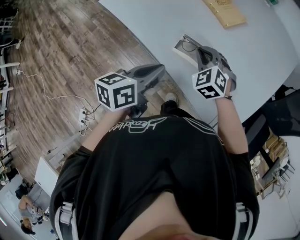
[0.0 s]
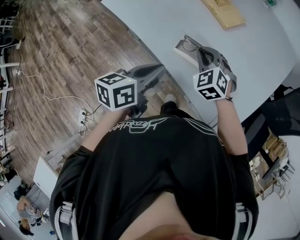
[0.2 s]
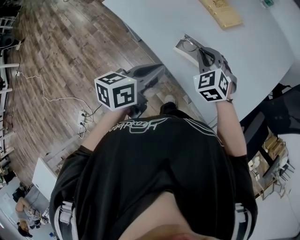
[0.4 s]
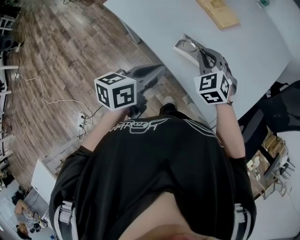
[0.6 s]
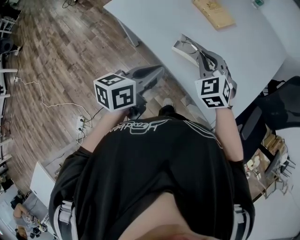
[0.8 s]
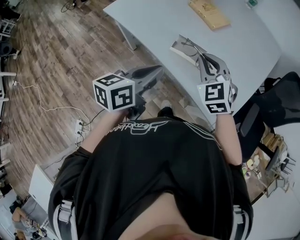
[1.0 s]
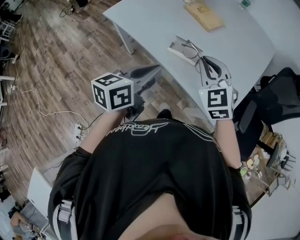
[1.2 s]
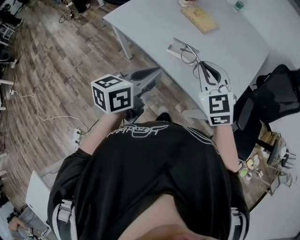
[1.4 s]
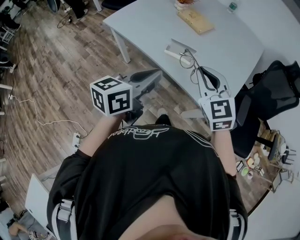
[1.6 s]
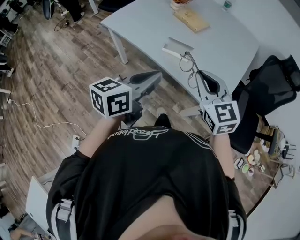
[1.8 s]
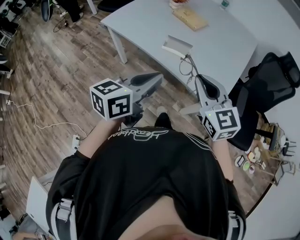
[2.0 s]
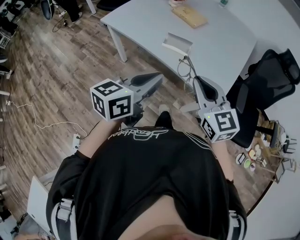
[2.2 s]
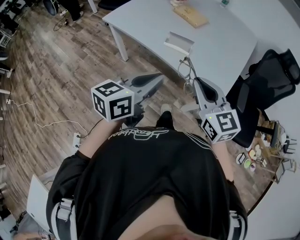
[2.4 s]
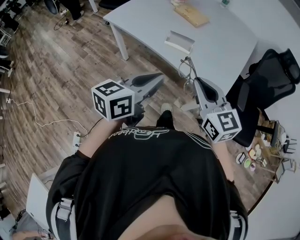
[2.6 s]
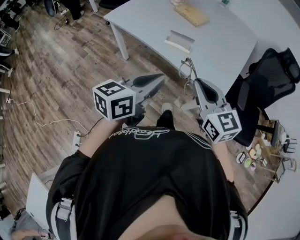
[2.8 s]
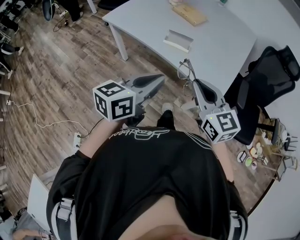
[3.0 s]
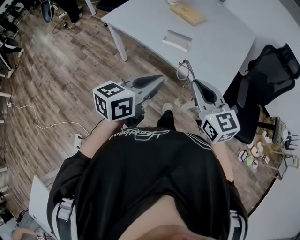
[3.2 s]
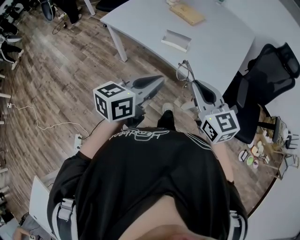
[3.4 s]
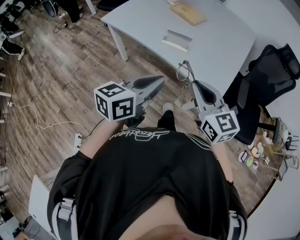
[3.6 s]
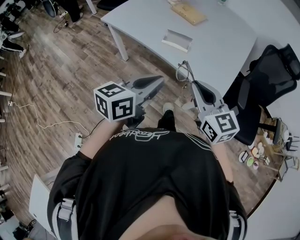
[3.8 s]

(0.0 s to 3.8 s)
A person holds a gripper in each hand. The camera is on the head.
0.0 s - 1.2 s: The right gripper goes approximately 20 cm upward and backward, and changes its angle by some 20 degrees. Meanwhile the left gripper moves upward and backward, approximately 10 cm.
1.2 s - 2.6 s: The two grippers go approximately 20 cm backward. The right gripper rotates roughly 30 degrees.
2.6 s - 3.8 s: The grippers make only small movements.

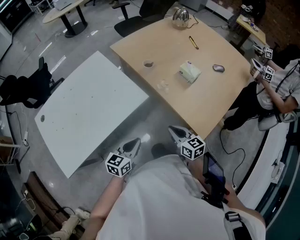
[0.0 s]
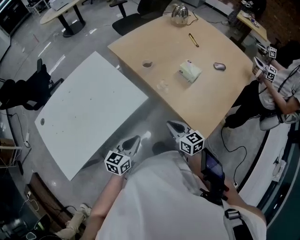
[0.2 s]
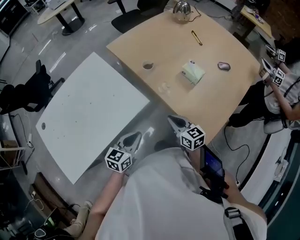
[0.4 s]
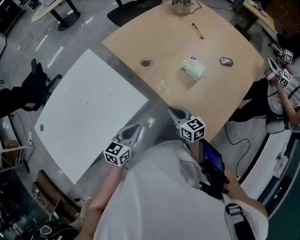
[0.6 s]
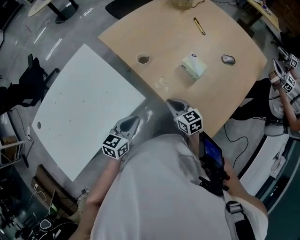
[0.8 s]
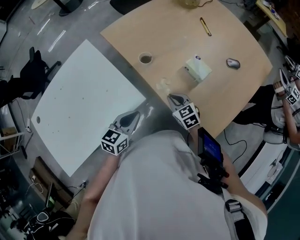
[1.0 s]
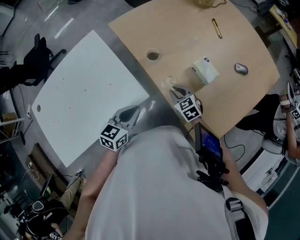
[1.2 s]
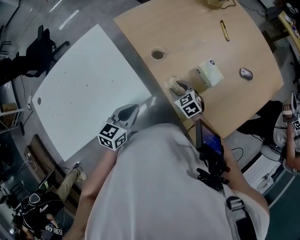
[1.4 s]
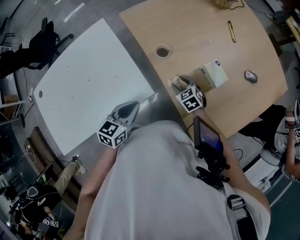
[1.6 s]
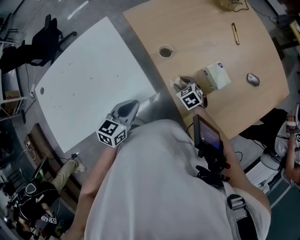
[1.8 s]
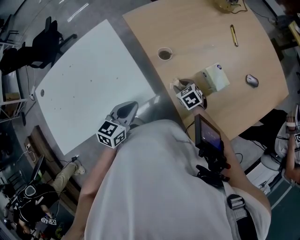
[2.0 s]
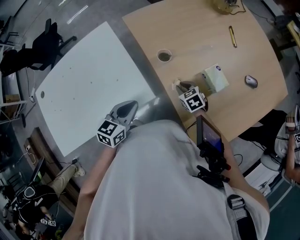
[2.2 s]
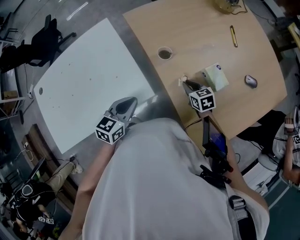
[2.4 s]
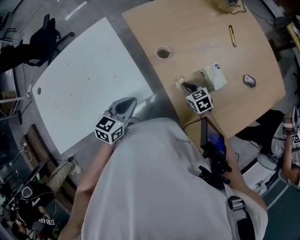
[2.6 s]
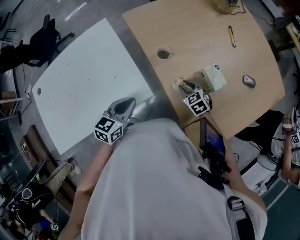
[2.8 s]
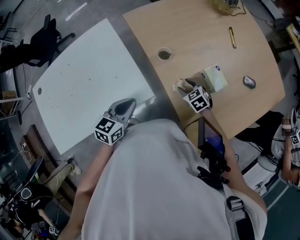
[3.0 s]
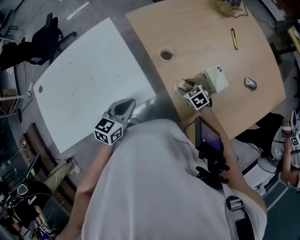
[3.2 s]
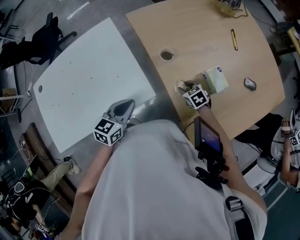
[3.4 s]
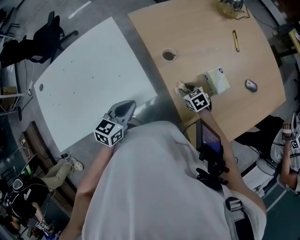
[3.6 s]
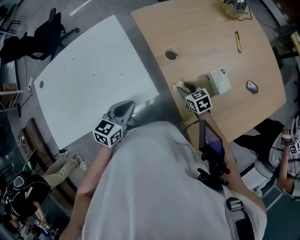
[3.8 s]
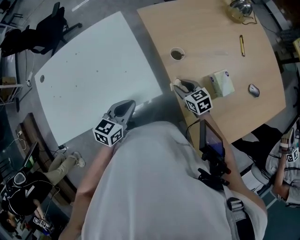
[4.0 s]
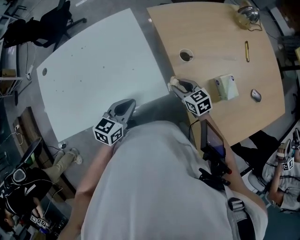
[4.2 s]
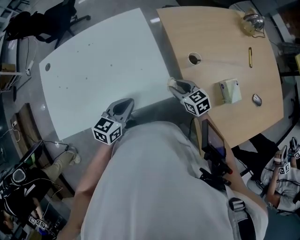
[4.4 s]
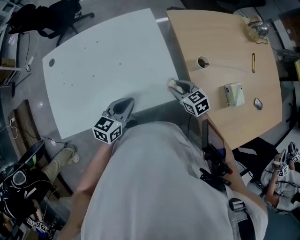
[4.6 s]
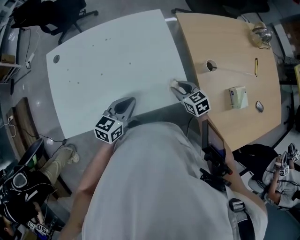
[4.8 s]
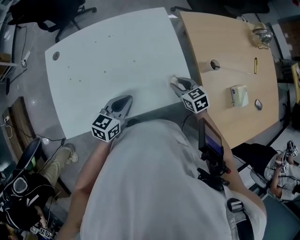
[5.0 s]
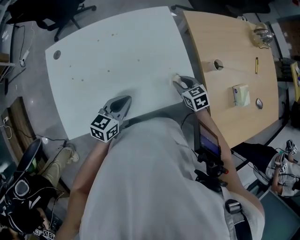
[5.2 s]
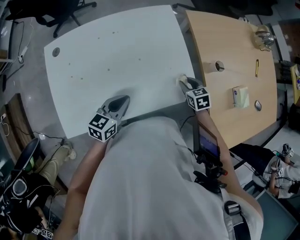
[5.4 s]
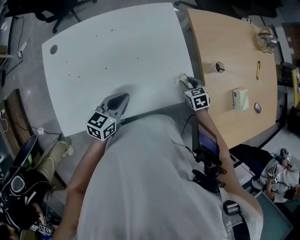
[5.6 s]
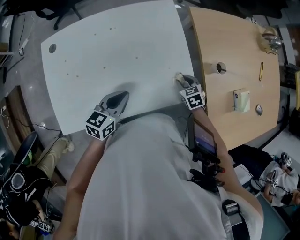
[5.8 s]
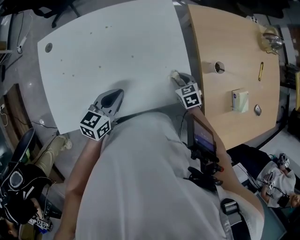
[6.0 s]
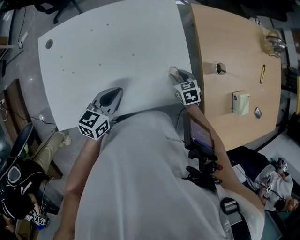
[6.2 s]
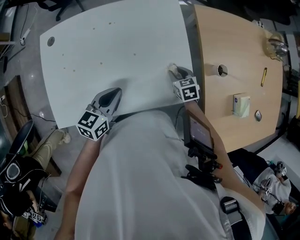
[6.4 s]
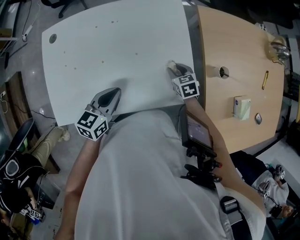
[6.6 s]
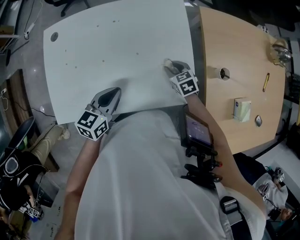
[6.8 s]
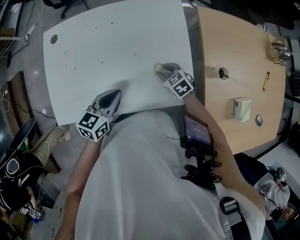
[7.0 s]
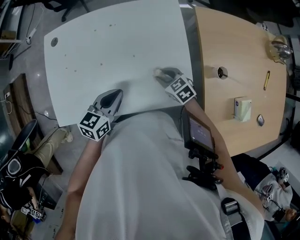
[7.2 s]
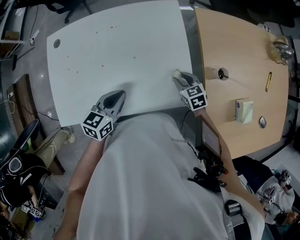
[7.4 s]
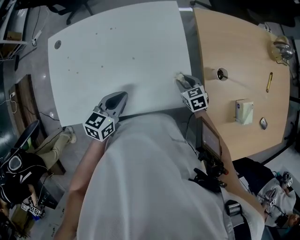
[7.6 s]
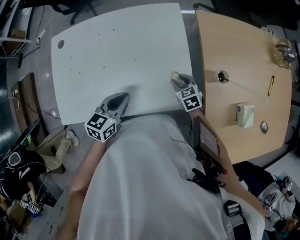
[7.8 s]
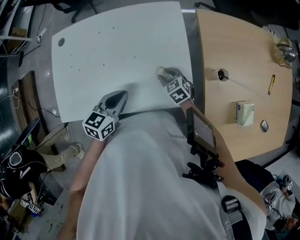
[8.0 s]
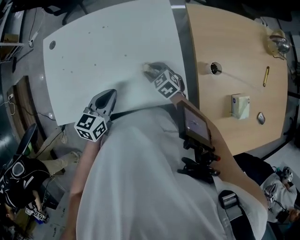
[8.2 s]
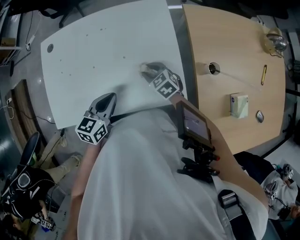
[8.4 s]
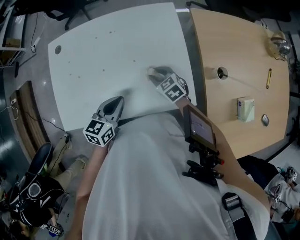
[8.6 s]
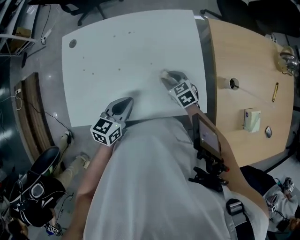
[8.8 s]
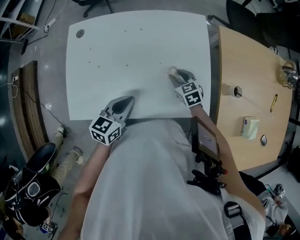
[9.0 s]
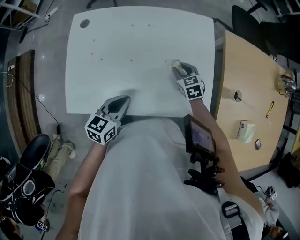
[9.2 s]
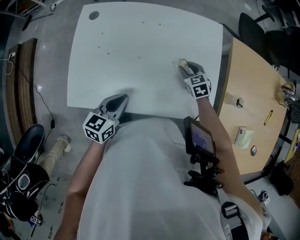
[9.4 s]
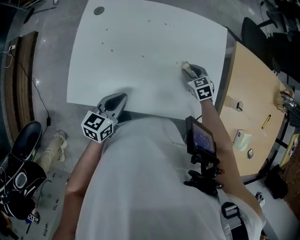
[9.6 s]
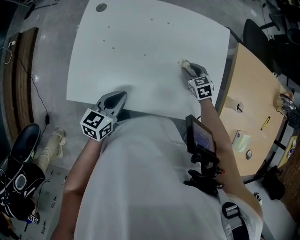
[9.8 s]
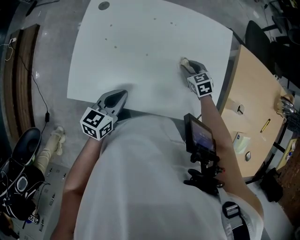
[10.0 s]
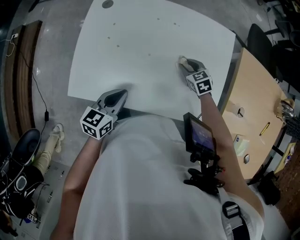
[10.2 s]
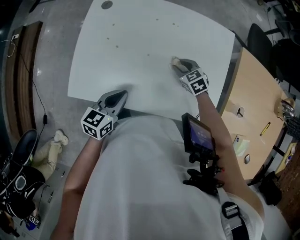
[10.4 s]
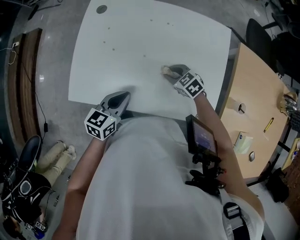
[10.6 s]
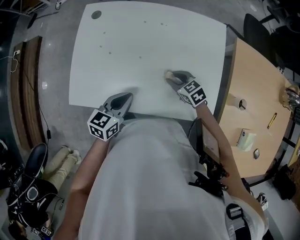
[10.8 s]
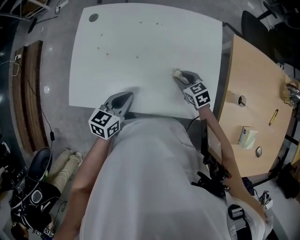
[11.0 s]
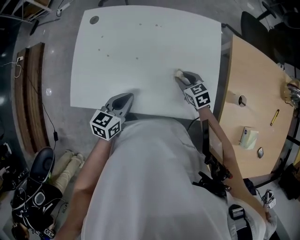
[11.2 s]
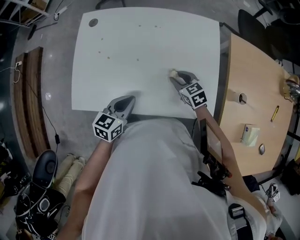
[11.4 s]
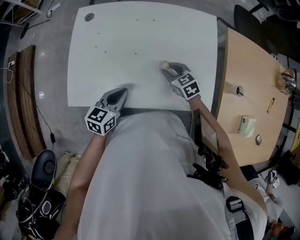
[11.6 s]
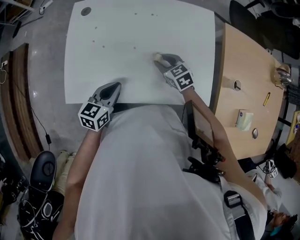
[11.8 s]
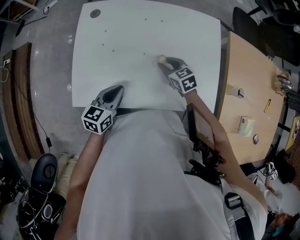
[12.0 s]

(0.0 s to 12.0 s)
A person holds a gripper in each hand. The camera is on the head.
0.0 s - 1.6 s: The left gripper goes some 20 cm forward, while the right gripper shifts approximately 30 cm forward and downward, turns by some 40 degrees, and opens up.
1.6 s - 3.0 s: The right gripper closes, then reopens.
3.0 s - 4.4 s: Both grippers travel together to the left, approximately 15 cm. The right gripper swivels about 20 degrees.
4.4 s - 6.0 s: The left gripper moves to the left, roughly 15 cm. Meanwhile the right gripper heads to the left and downward, covering about 10 cm, and turns by about 20 degrees.
6.0 s - 7.6 s: The right gripper travels to the left and back again, about 10 cm each way.
7.6 s - 9.0 s: The right gripper goes roughly 15 cm to the left and forward; the left gripper travels to the left by roughly 10 cm.
9.0 s - 10.4 s: The two grippers go approximately 10 cm to the left. The right gripper rotates roughly 20 degrees.
10.4 s - 12.0 s: The left gripper moves approximately 5 cm to the right and comes back.

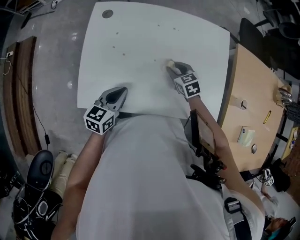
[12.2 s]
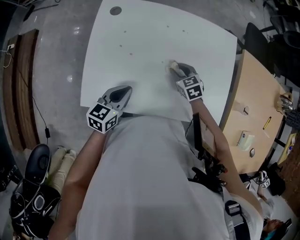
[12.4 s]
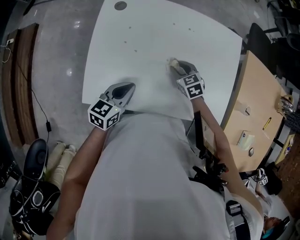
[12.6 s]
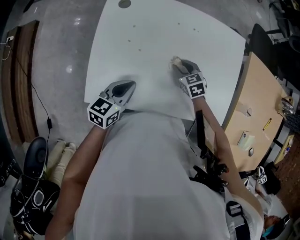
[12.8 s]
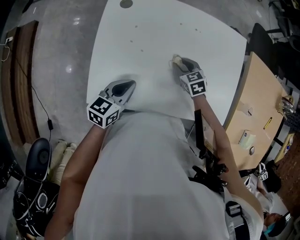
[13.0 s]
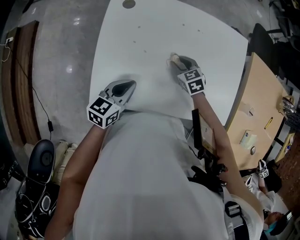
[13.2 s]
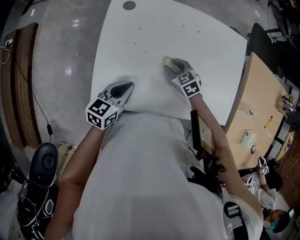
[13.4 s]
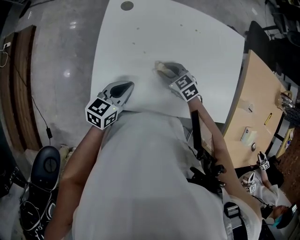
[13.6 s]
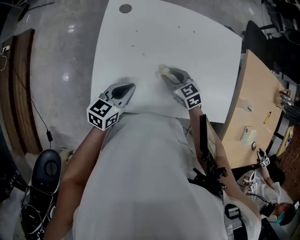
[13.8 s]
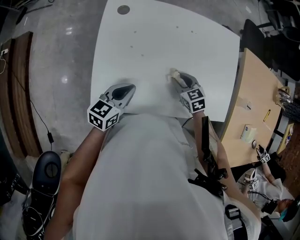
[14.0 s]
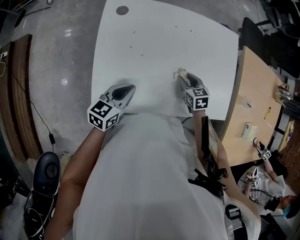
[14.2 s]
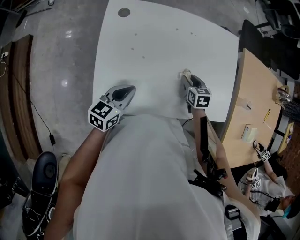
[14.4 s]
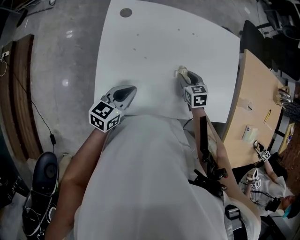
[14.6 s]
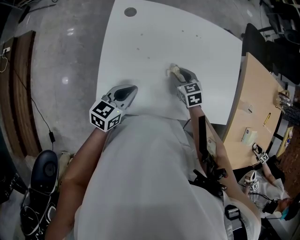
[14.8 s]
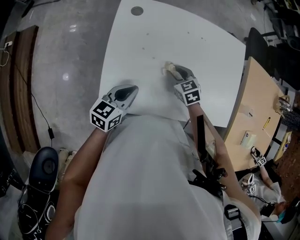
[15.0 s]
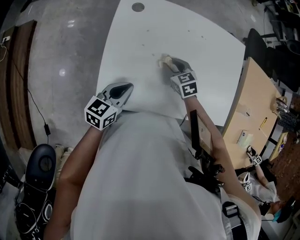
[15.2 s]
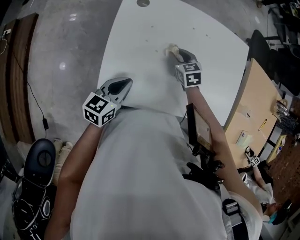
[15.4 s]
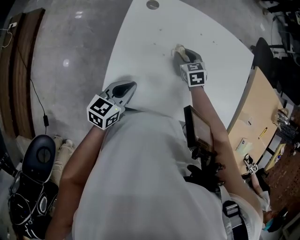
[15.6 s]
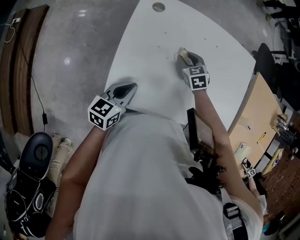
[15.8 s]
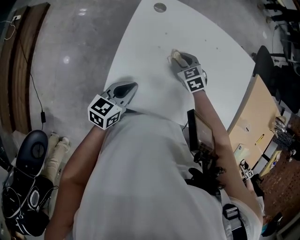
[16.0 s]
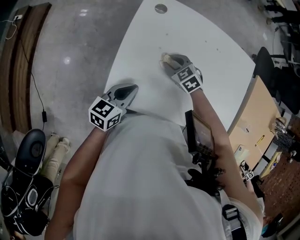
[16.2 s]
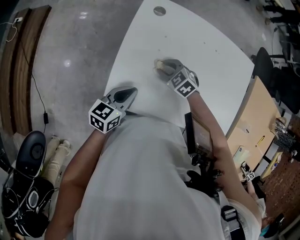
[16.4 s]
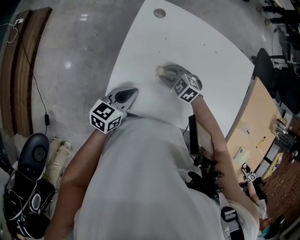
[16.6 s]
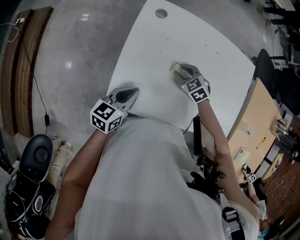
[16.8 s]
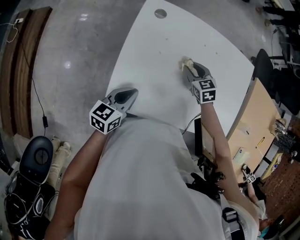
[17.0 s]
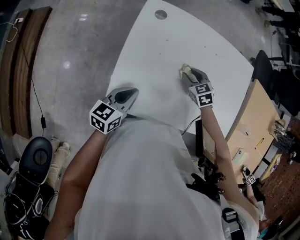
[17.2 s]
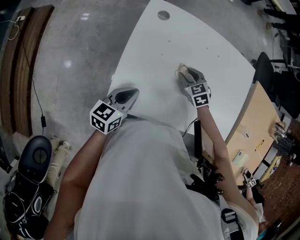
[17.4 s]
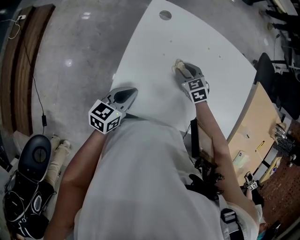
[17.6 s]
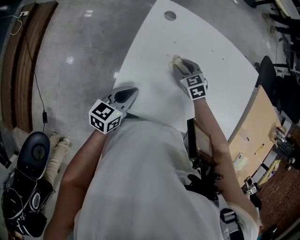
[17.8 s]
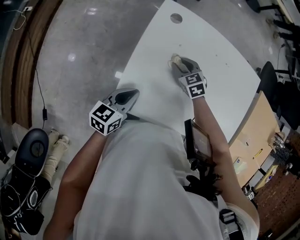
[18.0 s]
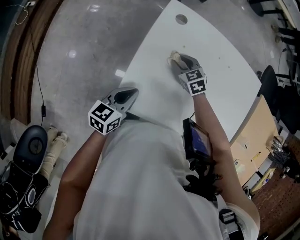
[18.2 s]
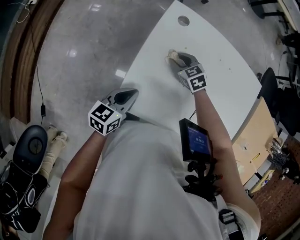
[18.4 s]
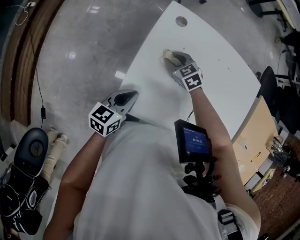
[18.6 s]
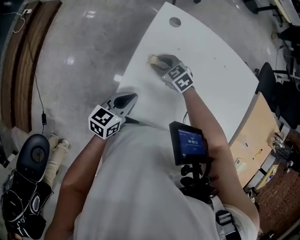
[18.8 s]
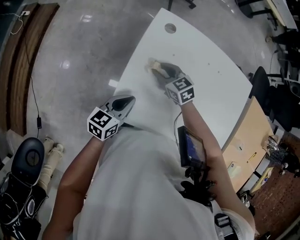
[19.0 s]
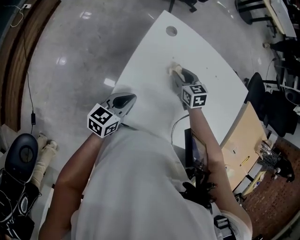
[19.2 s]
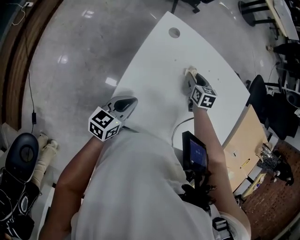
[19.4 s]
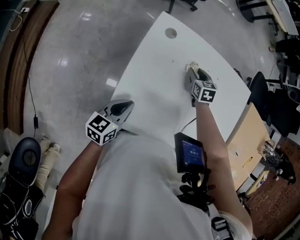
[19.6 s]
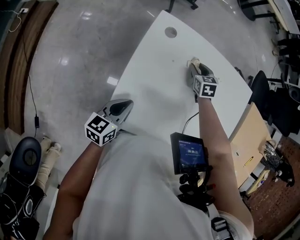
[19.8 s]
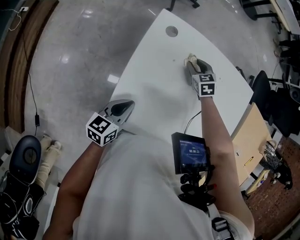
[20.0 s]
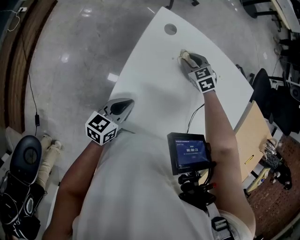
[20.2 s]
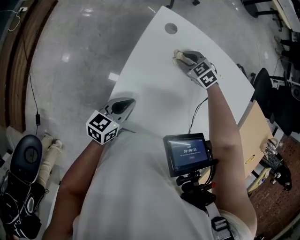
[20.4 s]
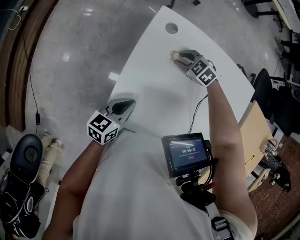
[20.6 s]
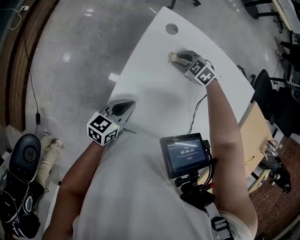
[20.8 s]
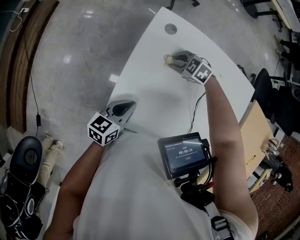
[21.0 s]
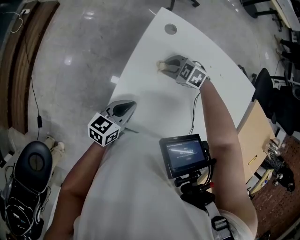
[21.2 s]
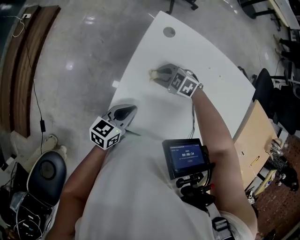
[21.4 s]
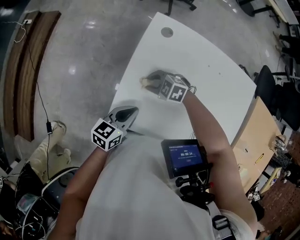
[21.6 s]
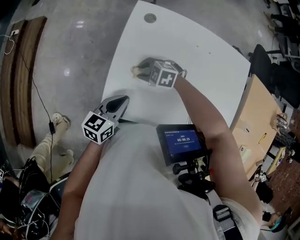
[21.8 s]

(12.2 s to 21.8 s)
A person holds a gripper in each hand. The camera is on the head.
12.2 s - 13.8 s: The left gripper goes about 5 cm to the left. The right gripper is displaced to the left by roughly 10 cm.
13.8 s - 15.4 s: The left gripper moves some 5 cm. The right gripper heads forward, covering some 10 cm, and goes to the right and returns, approximately 15 cm each way.
15.4 s - 17.0 s: The right gripper moves some 10 cm to the left and comes back.
17.0 s - 18.6 s: The right gripper shifts roughly 20 cm to the left, and changes its angle by approximately 20 degrees. Meanwhile the left gripper is displaced to the left by about 5 cm.
18.6 s - 20.2 s: The right gripper changes place by some 15 cm.
20.2 s - 21.8 s: The right gripper shifts by approximately 20 cm, and changes its angle by some 40 degrees. The left gripper moves upward, some 5 cm.
